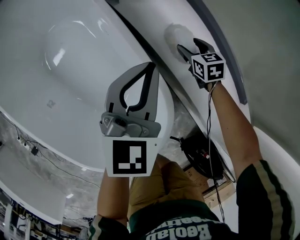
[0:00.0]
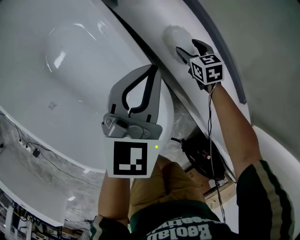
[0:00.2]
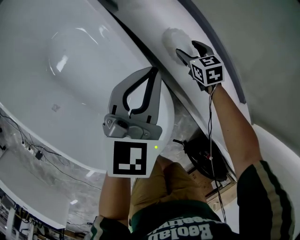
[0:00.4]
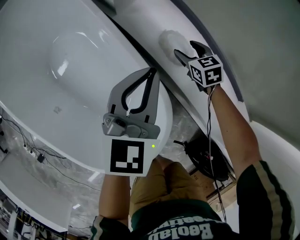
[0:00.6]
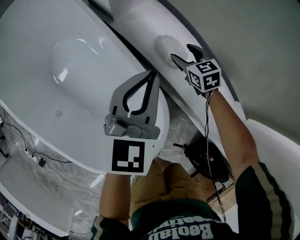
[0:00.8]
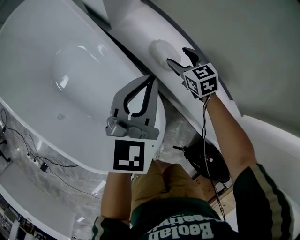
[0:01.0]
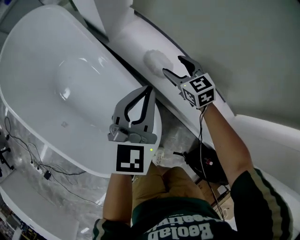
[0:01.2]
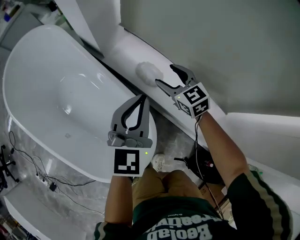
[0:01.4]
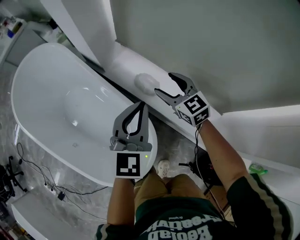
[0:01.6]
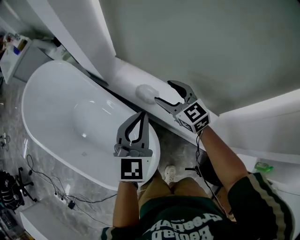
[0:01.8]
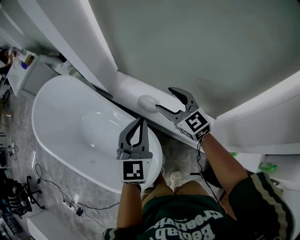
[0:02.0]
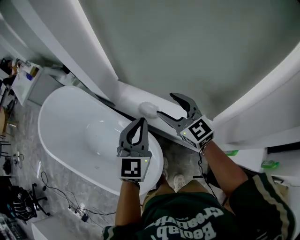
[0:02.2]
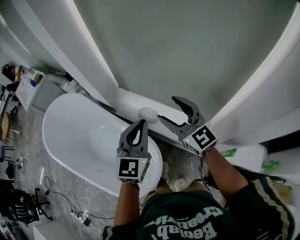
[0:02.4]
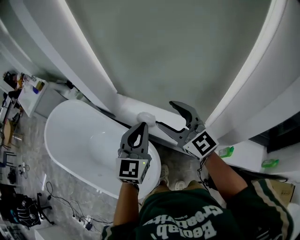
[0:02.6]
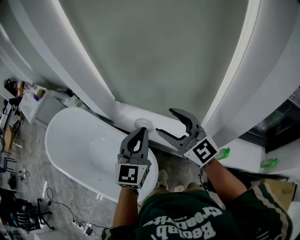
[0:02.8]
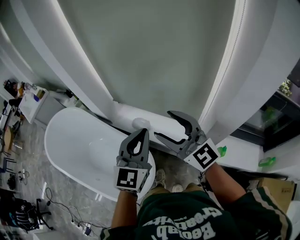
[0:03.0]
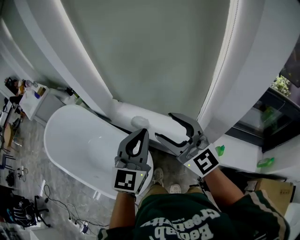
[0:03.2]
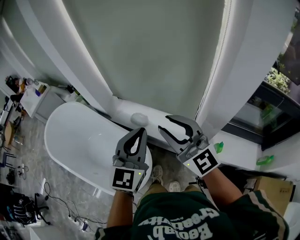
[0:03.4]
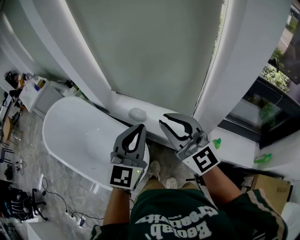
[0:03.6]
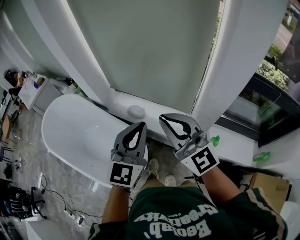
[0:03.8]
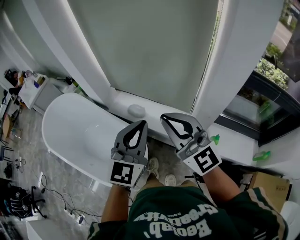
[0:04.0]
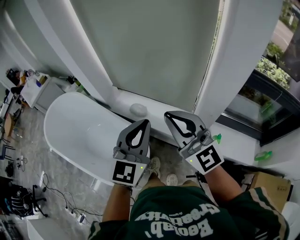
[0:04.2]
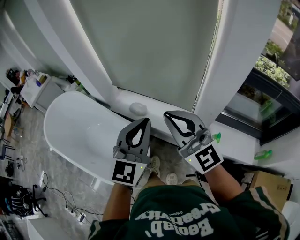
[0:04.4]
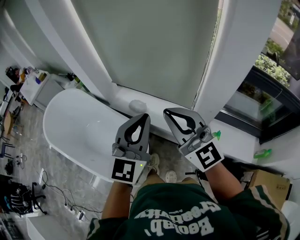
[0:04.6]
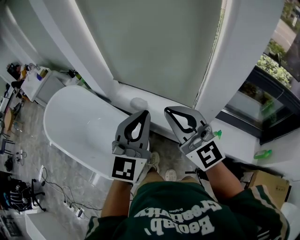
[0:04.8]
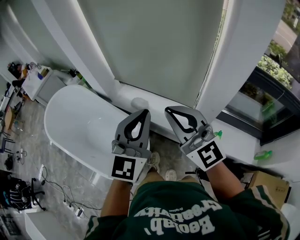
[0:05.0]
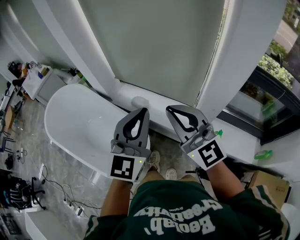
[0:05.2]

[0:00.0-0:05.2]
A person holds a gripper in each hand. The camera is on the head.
0:00.0 to 0:01.8: The left gripper shifts some 25 cm upward, backward and to the right; the right gripper heads upward, covering about 35 cm, and angles its fingers upward, by roughly 30 degrees.
0:01.8 to 0:03.4: The left gripper shifts some 30 cm backward, upward and to the right. Meanwhile the right gripper travels backward and upward by about 40 cm, tips its fingers upward by about 30 degrees, and closes.
0:03.4 to 0:05.2: The left gripper ends up about 5 cm from where it was; the right gripper shifts roughly 5 cm backward, and closes up.

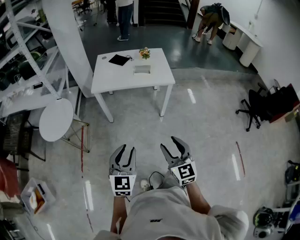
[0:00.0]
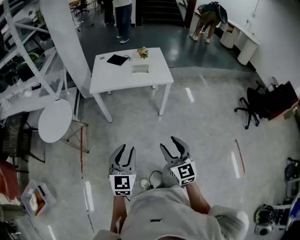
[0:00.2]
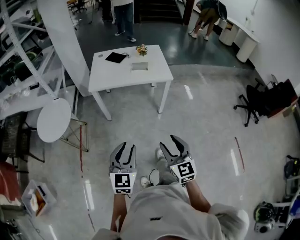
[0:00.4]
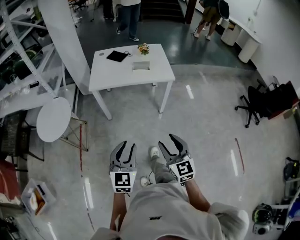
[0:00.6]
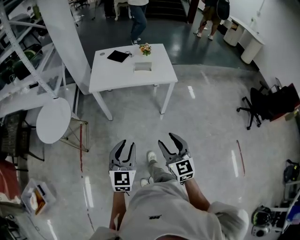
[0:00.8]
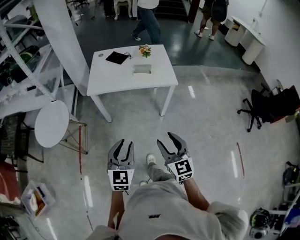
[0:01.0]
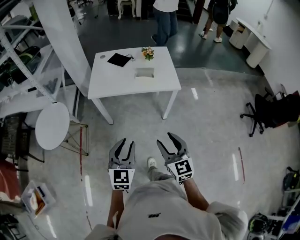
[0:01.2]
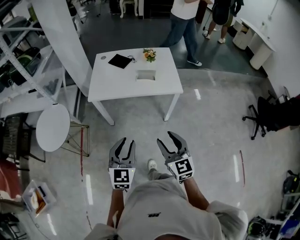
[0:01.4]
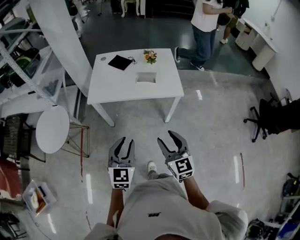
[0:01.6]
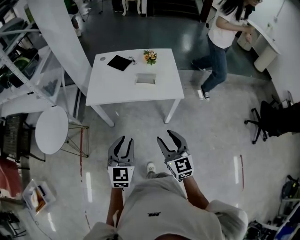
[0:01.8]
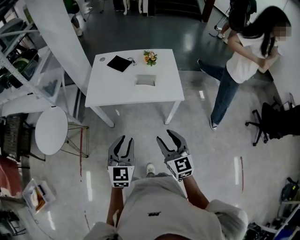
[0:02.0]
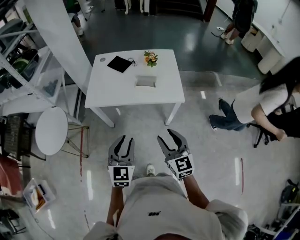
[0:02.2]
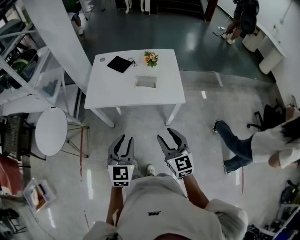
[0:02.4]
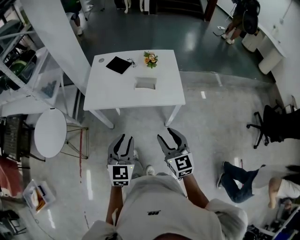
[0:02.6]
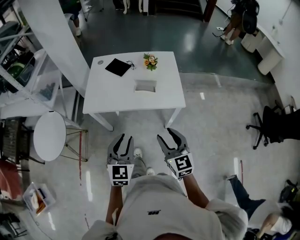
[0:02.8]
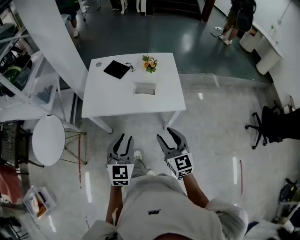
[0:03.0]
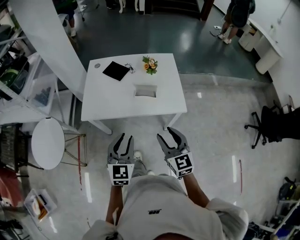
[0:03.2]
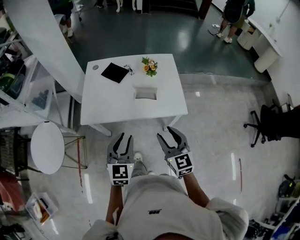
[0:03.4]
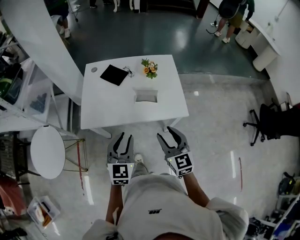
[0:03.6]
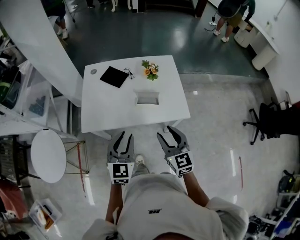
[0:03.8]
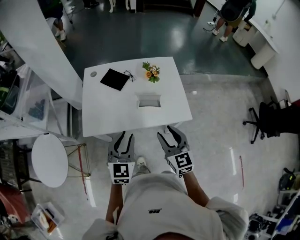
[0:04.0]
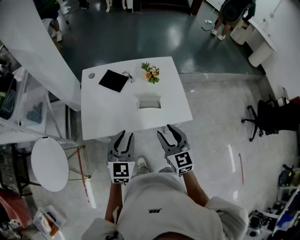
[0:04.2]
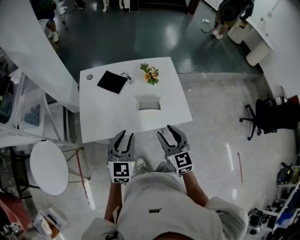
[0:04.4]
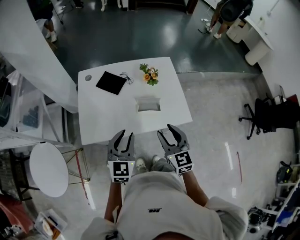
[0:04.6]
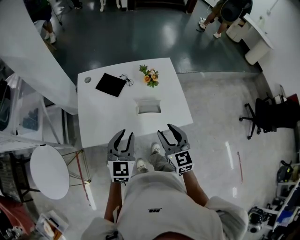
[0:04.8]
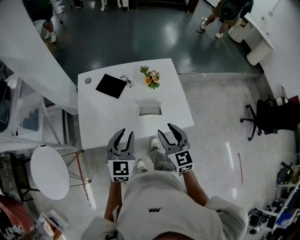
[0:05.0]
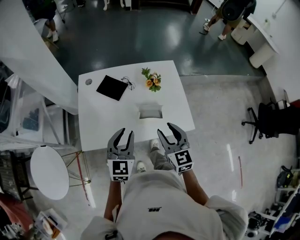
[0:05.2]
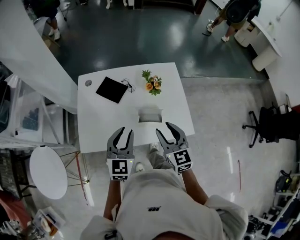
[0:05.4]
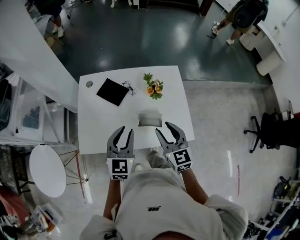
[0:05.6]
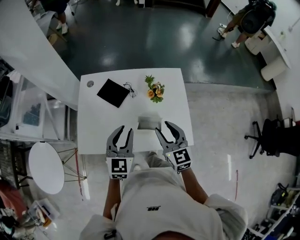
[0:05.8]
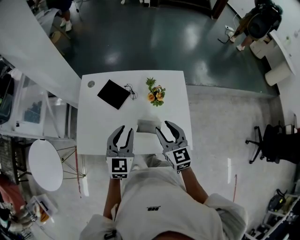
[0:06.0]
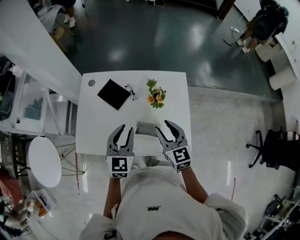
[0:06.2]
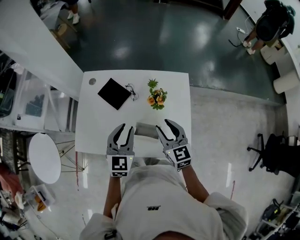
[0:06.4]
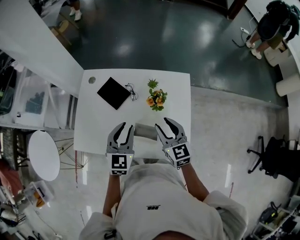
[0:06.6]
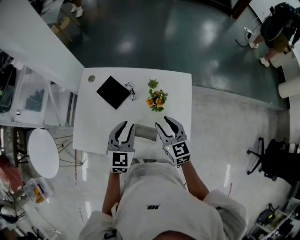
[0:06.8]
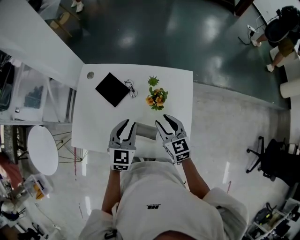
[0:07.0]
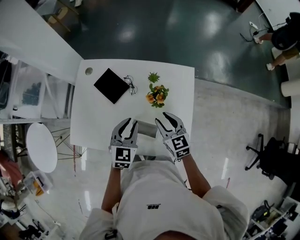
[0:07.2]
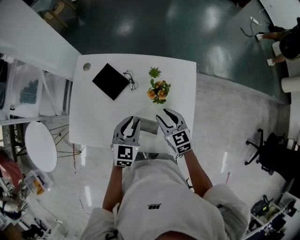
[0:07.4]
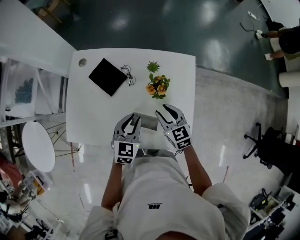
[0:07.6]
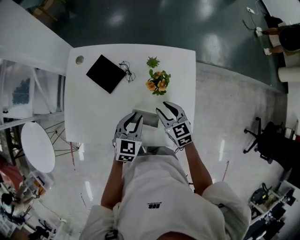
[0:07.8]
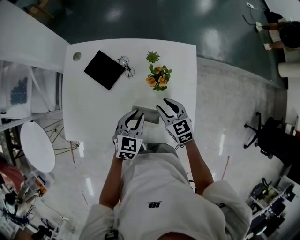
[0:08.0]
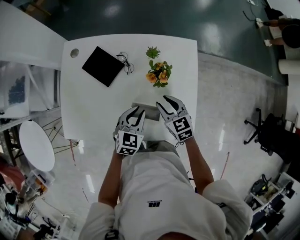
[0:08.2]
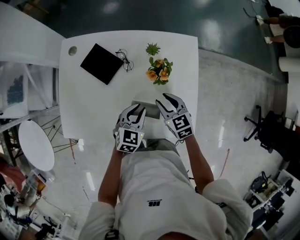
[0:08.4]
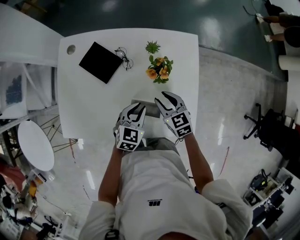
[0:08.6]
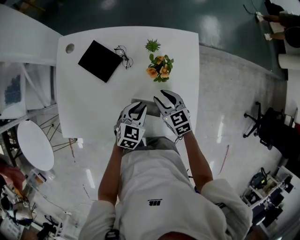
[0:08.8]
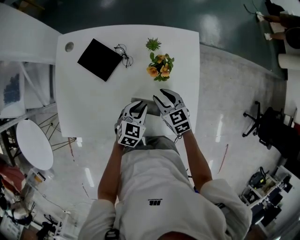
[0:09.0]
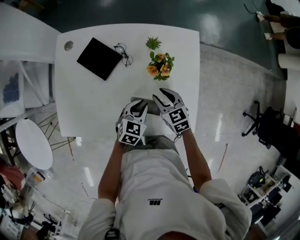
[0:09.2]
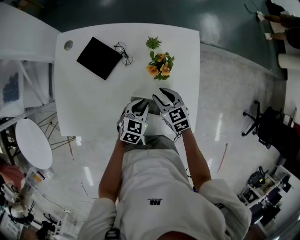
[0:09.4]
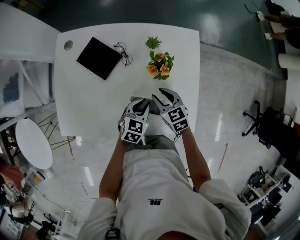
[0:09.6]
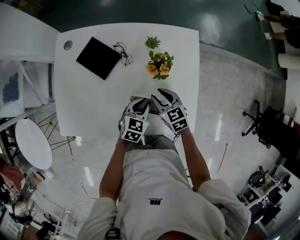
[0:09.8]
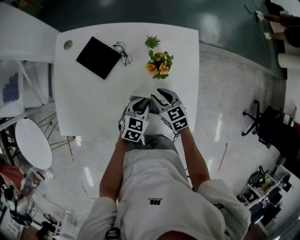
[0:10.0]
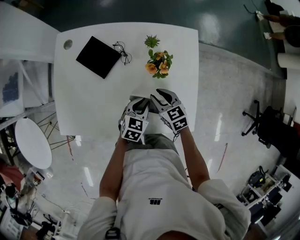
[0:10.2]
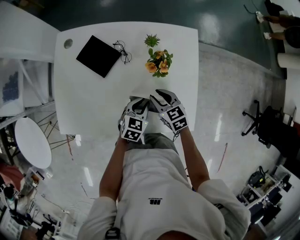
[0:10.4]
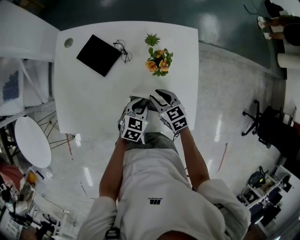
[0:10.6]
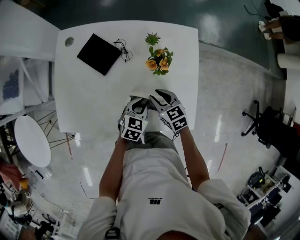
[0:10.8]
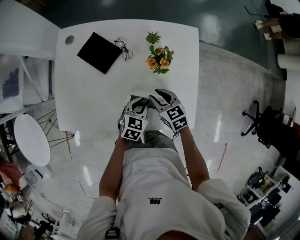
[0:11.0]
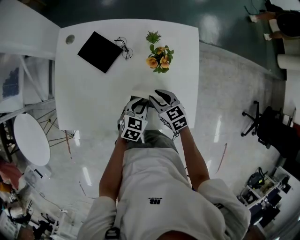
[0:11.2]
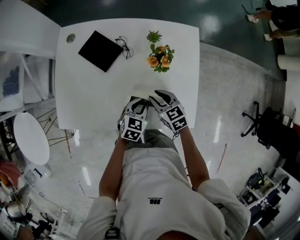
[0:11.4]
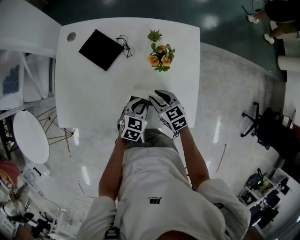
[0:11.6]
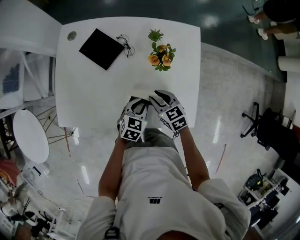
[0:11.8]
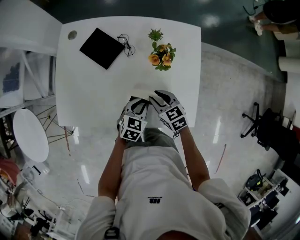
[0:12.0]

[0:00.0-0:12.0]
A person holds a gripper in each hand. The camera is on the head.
0:00.0 to 0:01.6: The two grippers go about 25 cm forward.
0:01.6 to 0:03.0: Both grippers travel together forward, roughly 15 cm.
0:03.0 to 0:04.4: The right gripper shifts some 20 cm forward and to the left. Meanwhile the left gripper travels forward by about 20 cm.
0:04.4 to 0:06.0: Both grippers move forward, roughly 20 cm.
0:06.0 to 0:07.6: The right gripper travels downward and forward by some 20 cm, and turns by about 20 degrees, while the left gripper shifts approximately 15 cm downward, to the right and forward.
0:07.6 to 0:09.0: Both grippers travel together downward, about 10 cm.
0:09.0 to 0:10.4: The grippers make only small movements.
0:10.4 to 0:12.0: The grippers stay close to where they were, moving slightly.

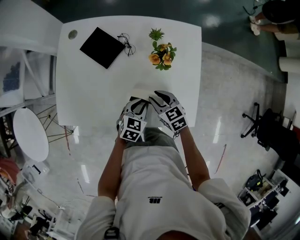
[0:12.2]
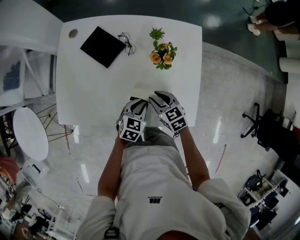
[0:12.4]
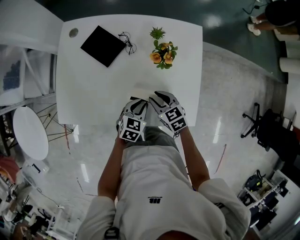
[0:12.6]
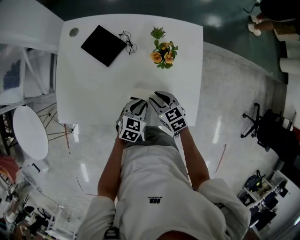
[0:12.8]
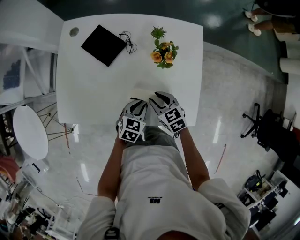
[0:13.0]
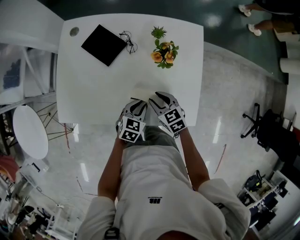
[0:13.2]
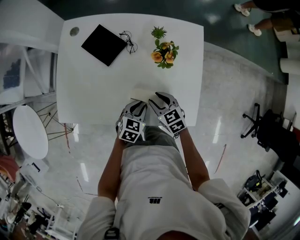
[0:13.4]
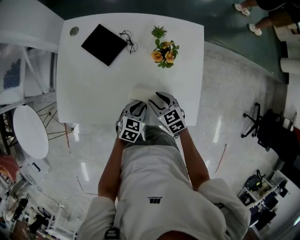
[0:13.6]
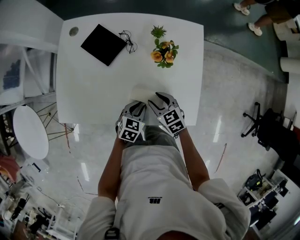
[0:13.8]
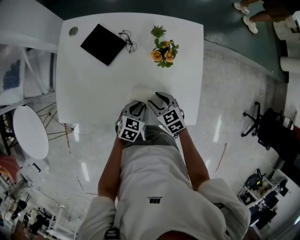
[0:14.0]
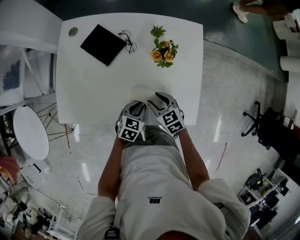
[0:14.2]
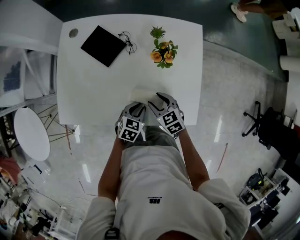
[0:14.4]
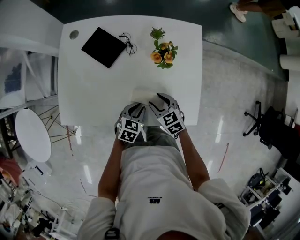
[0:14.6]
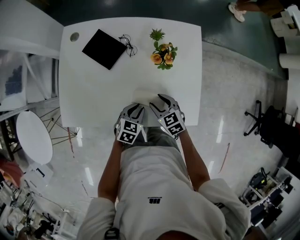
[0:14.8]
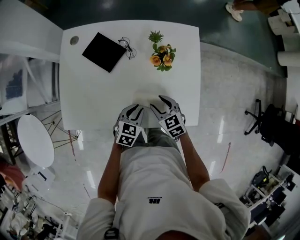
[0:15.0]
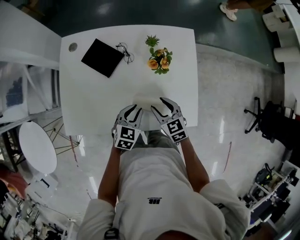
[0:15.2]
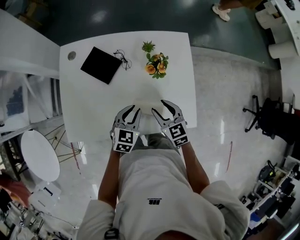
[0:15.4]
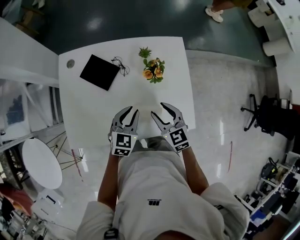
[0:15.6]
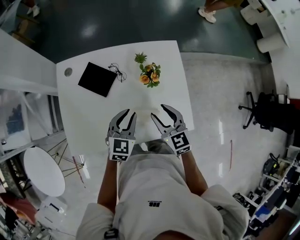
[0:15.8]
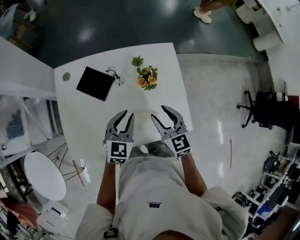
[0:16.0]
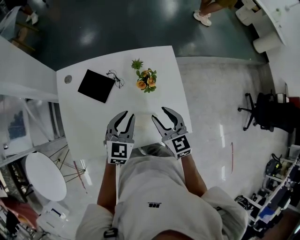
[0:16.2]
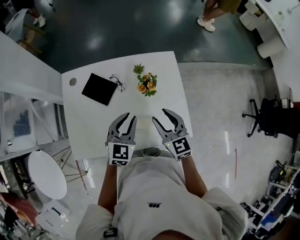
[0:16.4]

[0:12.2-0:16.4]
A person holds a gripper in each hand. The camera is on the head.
0:12.2 to 0:15.0: There are only small adjustments of the grippers.
0:15.0 to 0:16.4: The grippers both shift upward by roughly 20 cm. The left gripper turns by roughly 30 degrees; the right gripper turns by roughly 30 degrees.

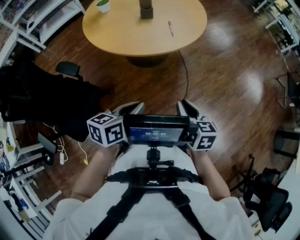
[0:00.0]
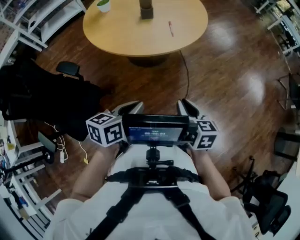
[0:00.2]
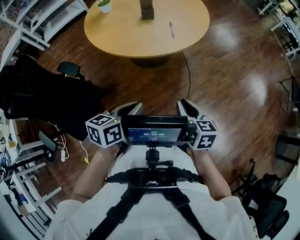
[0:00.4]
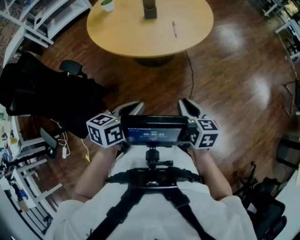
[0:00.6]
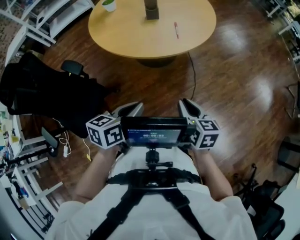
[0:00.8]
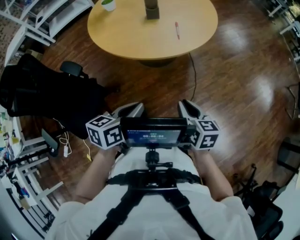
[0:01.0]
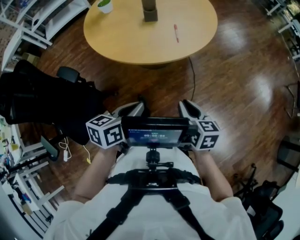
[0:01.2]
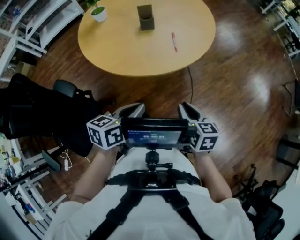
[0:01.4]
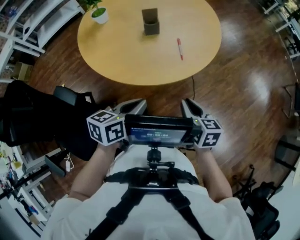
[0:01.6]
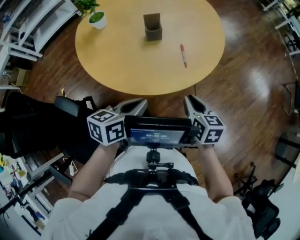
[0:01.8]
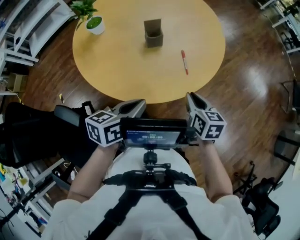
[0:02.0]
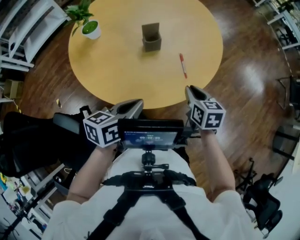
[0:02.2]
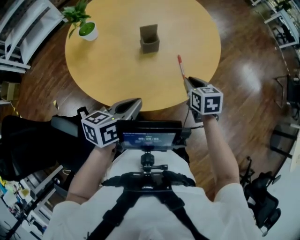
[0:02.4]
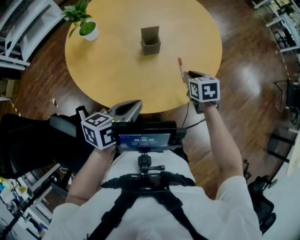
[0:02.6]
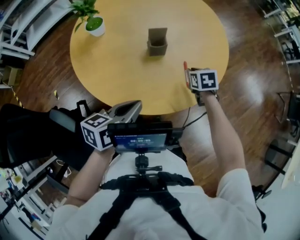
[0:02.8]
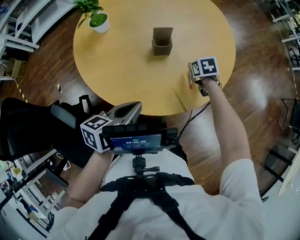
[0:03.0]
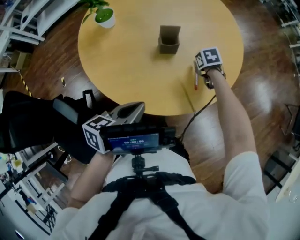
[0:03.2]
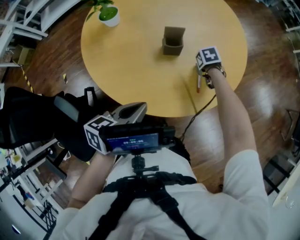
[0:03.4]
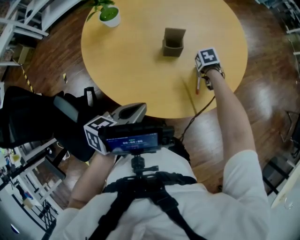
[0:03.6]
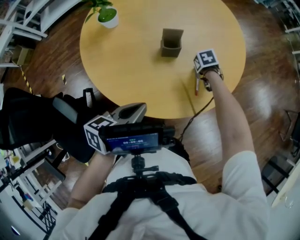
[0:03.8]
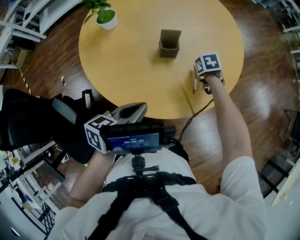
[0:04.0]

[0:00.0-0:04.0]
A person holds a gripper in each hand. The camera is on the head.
0:00.0 to 0:01.4: The two grippers go approximately 15 cm forward.
0:01.4 to 0:02.6: The right gripper goes some 30 cm forward, and swivels approximately 20 degrees. The left gripper heads forward and to the left, covering some 20 cm.
0:02.6 to 0:04.0: The right gripper ends up approximately 15 cm from where it was, and turns by approximately 20 degrees.
